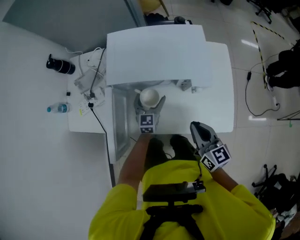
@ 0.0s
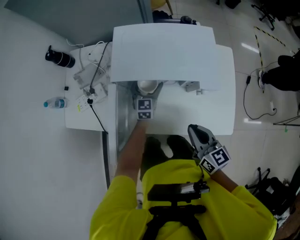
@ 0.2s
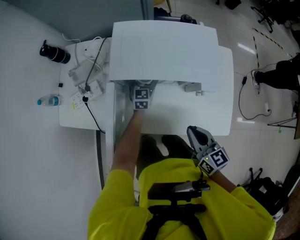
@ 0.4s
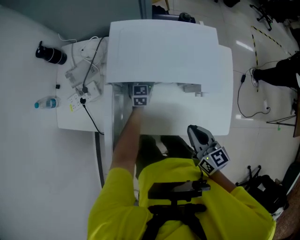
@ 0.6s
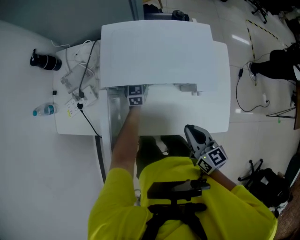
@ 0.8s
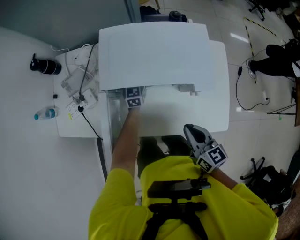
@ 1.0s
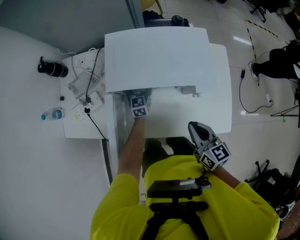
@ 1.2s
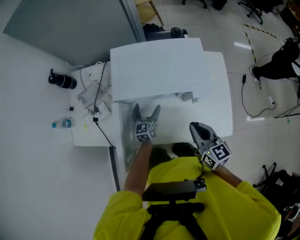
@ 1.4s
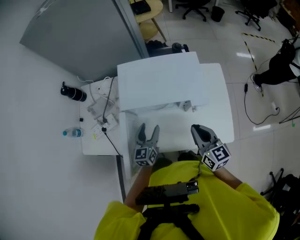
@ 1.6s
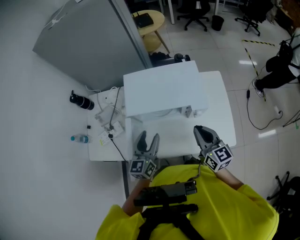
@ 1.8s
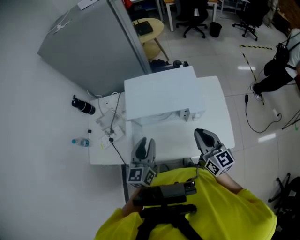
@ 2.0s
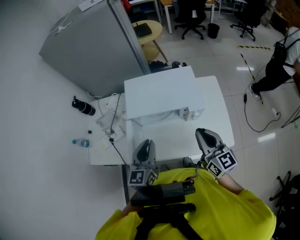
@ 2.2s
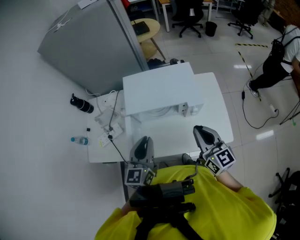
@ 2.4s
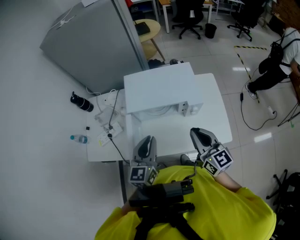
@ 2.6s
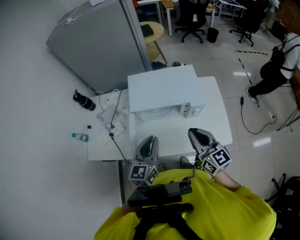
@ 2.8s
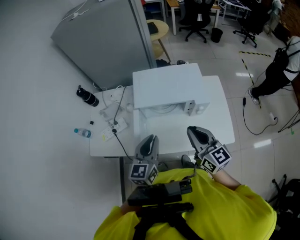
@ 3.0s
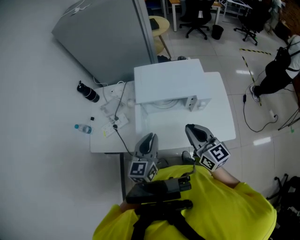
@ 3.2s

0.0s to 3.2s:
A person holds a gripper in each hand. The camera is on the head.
0.0s to 1.6s: The left gripper is displaced upward and to the left by roughly 10 cm, and reaches approximately 15 cm forward, then returns, while the right gripper goes roughly 5 cm upward.
1.6s to 3.2s: The right gripper shifts roughly 15 cm to the left, upward and backward; the left gripper travels upward and backward by about 20 cm, and closes its fingers.

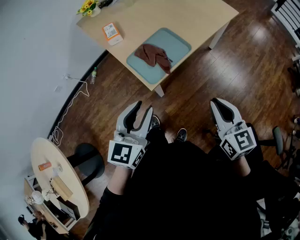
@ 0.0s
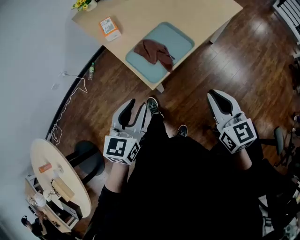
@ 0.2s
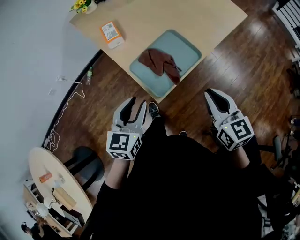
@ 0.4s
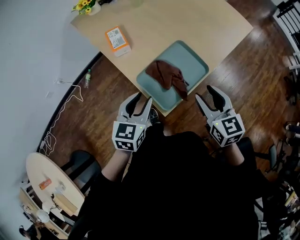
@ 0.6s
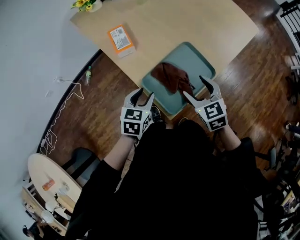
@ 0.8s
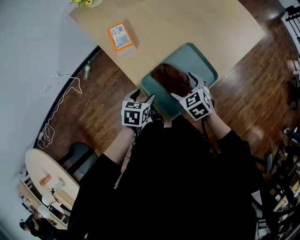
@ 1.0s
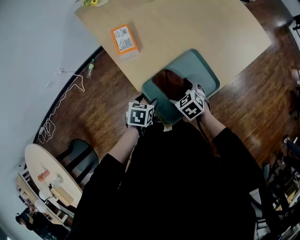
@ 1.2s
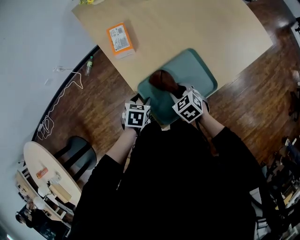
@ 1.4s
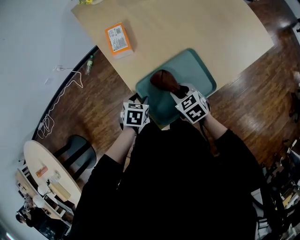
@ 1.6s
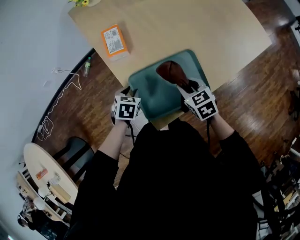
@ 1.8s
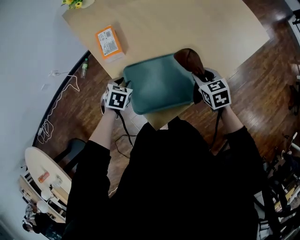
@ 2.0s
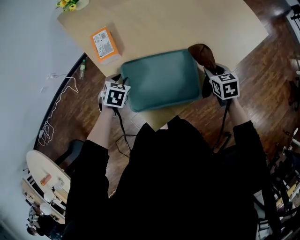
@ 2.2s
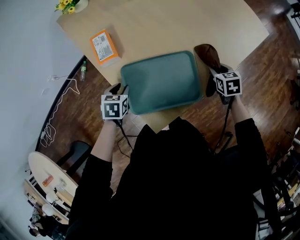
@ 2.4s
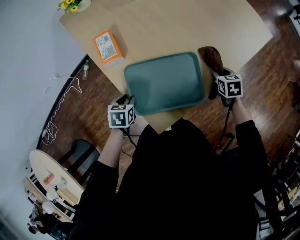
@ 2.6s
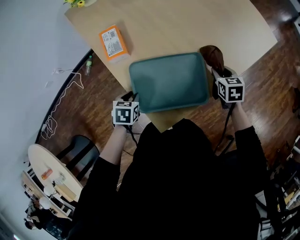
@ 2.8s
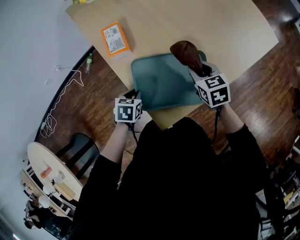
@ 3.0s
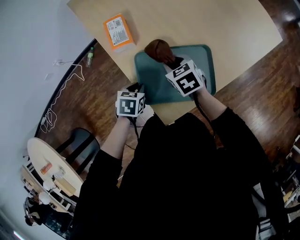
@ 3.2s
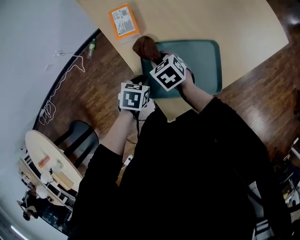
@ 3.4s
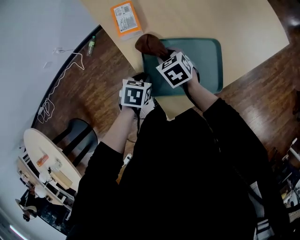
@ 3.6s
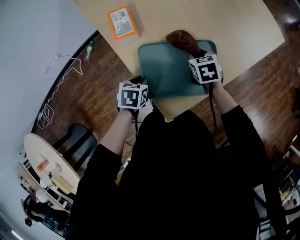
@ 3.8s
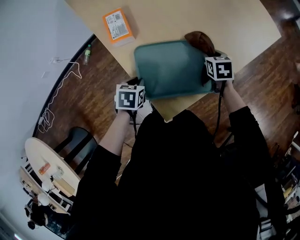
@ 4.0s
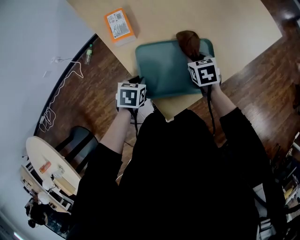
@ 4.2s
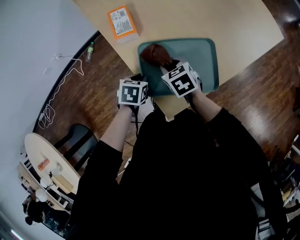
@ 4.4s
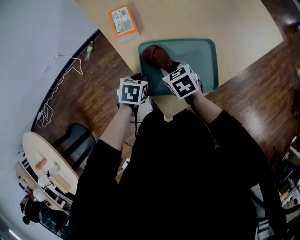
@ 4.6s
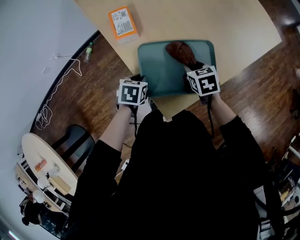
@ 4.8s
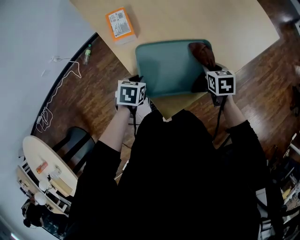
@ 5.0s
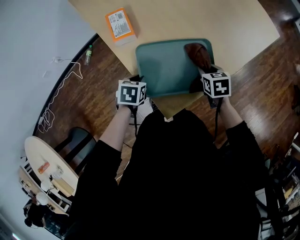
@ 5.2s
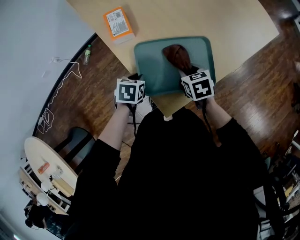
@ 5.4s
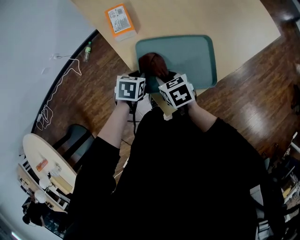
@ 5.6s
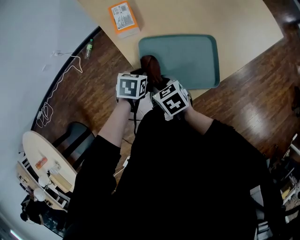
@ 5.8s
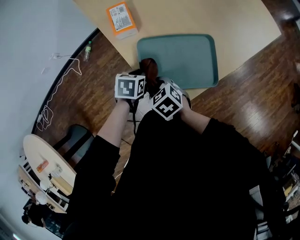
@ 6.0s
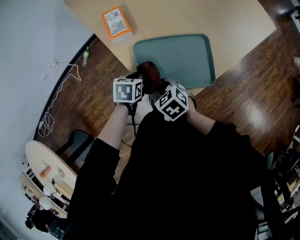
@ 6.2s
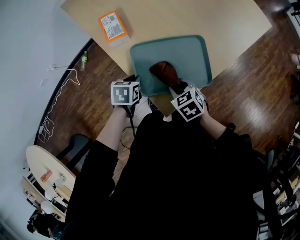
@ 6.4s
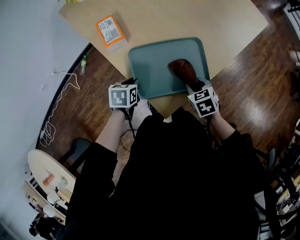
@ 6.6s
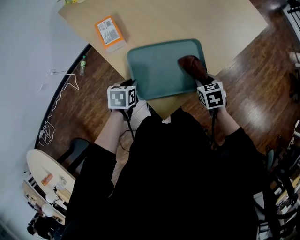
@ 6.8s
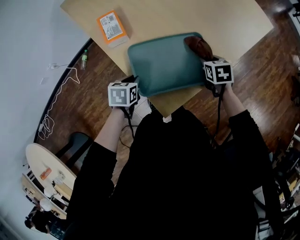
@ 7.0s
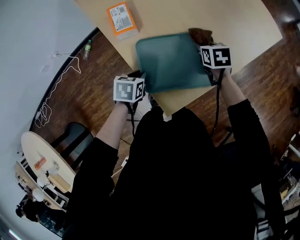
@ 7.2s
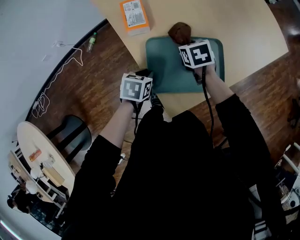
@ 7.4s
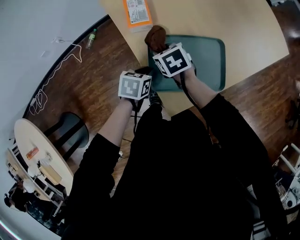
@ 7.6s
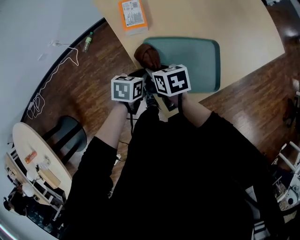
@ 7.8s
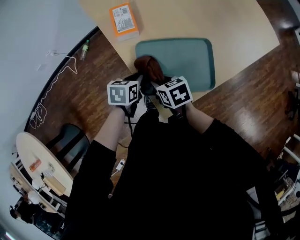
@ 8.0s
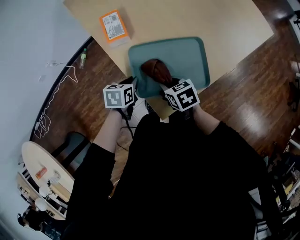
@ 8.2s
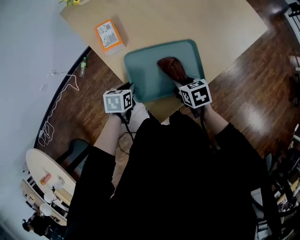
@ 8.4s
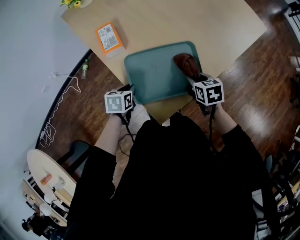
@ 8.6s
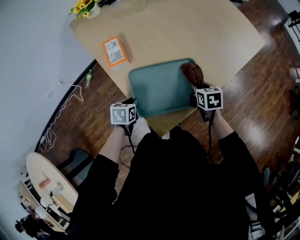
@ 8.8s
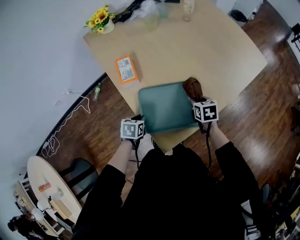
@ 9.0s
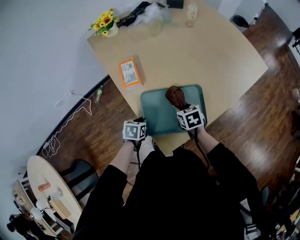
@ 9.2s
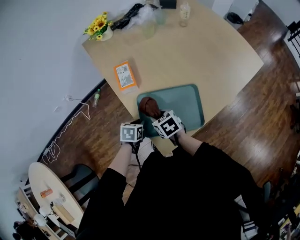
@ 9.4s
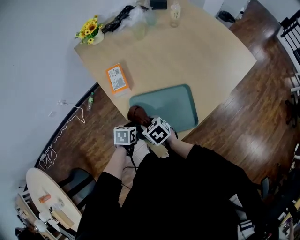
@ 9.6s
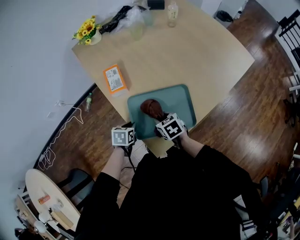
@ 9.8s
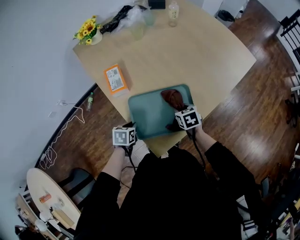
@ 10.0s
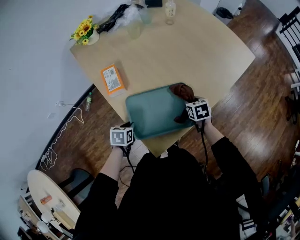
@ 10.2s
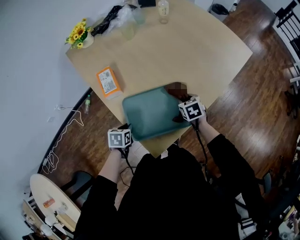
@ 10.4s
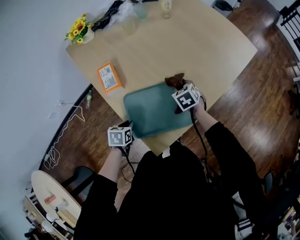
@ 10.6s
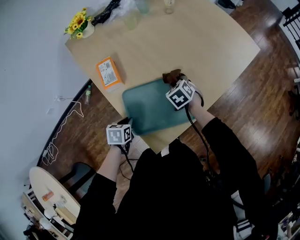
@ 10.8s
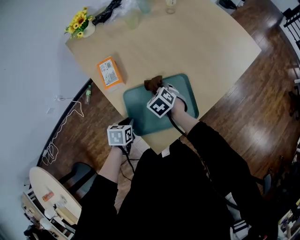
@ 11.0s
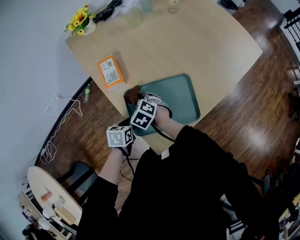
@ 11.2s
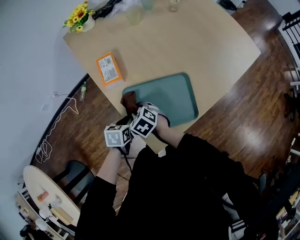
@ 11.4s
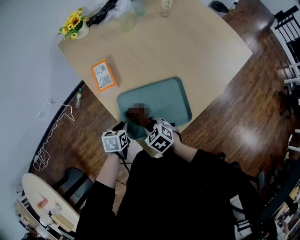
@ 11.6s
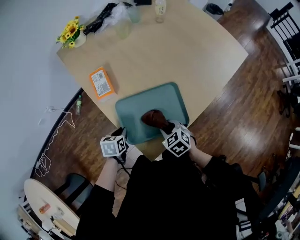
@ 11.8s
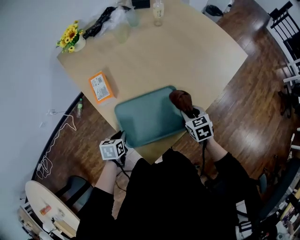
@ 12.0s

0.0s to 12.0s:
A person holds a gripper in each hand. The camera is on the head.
0.0s to 1.6s: The left gripper travels downward and forward by some 40 cm, and tilts its fingers approximately 50 degrees downward, while the right gripper heads forward, downward and to the left, covering some 50 cm, tilts its fingers about 30 degrees downward, and opens, then closes again.
1.6s to 3.0s: The right gripper moves forward, about 10 cm, and moves approximately 25 cm to the right and comes back. Meanwhile the left gripper moves roughly 10 cm forward and comes back, and closes up.
3.0s to 4.4s: The right gripper swings left and right, some 25 cm each way, with 2 reversals.
4.4s to 6.0s: The right gripper travels backward by approximately 10 cm, and travels to the right and back again, some 20 cm each way.
6.0s to 7.6s: The right gripper travels forward by about 15 cm, and goes to the right and returns, roughly 30 cm each way.
7.6s to 9.0s: The right gripper moves to the right, roughly 25 cm, and changes its angle by approximately 30 degrees.
9.0s to 10.4s: The right gripper reaches some 20 cm to the left, then returns.
10.4s to 12.0s: The right gripper reaches about 25 cm to the left, then returns.

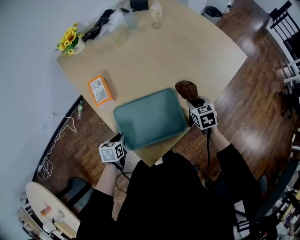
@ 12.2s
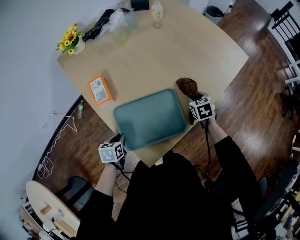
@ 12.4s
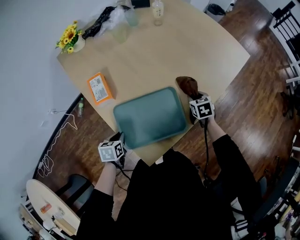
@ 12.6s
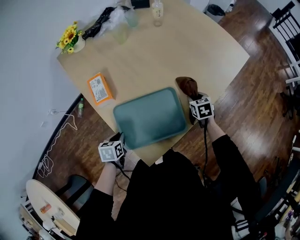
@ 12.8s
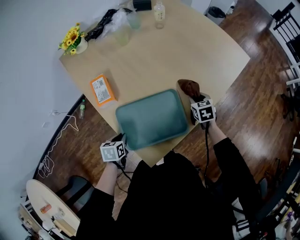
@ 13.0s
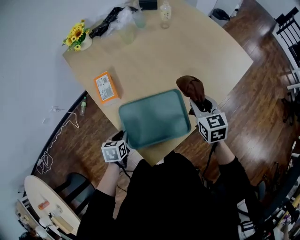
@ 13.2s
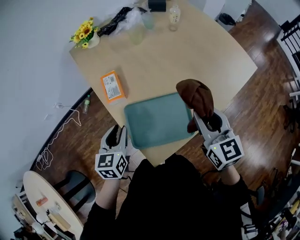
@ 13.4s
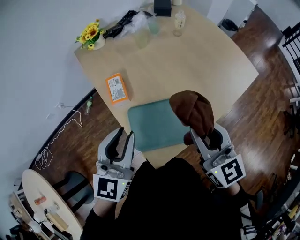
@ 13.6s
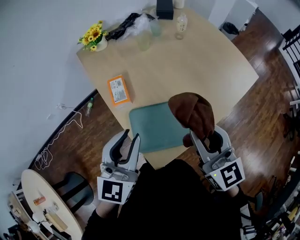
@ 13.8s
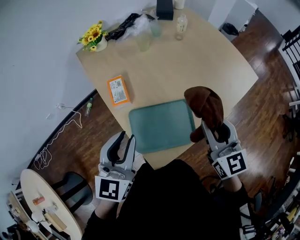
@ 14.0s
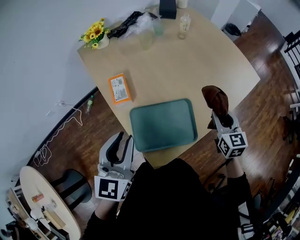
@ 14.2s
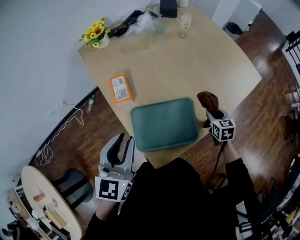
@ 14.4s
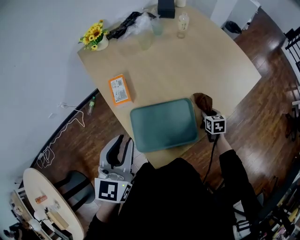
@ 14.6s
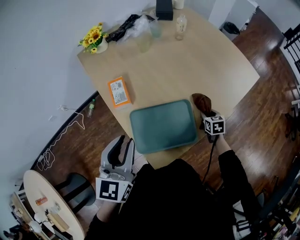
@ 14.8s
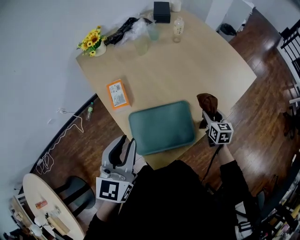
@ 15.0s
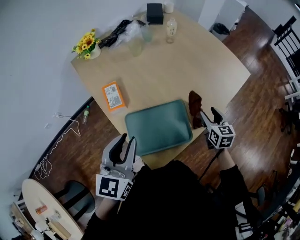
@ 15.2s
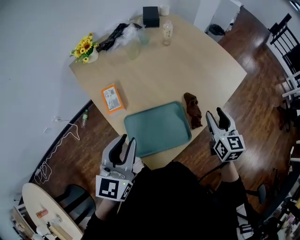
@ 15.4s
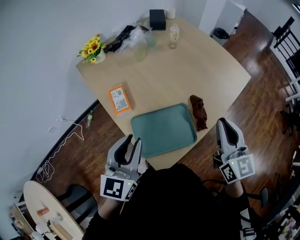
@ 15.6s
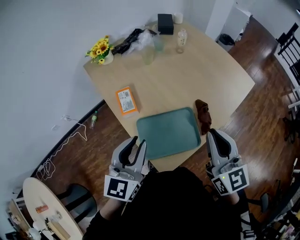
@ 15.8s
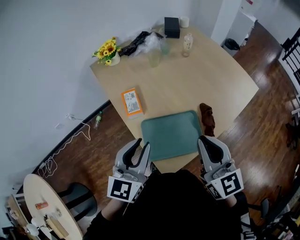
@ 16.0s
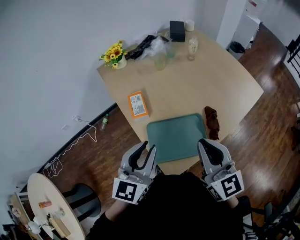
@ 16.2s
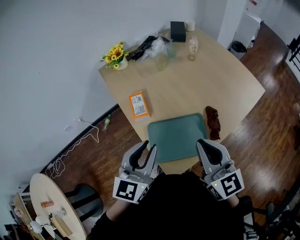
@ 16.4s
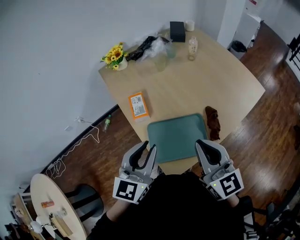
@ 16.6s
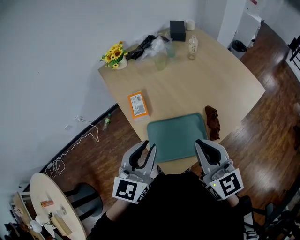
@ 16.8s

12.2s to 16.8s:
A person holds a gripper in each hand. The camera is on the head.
12.2s to 13.8s: The left gripper moves upward, roughly 35 cm, and angles its fingers upward, by approximately 50 degrees. Meanwhile the right gripper heads upward and to the left, covering approximately 35 cm, and tilts its fingers approximately 40 degrees upward.
13.8s to 15.2s: The right gripper is displaced downward and to the right by some 25 cm, turns by about 30 degrees, and opens its fingers.
15.2s to 16.8s: The right gripper goes approximately 30 cm upward, to the left and backward, turns by approximately 40 degrees, and closes its fingers.

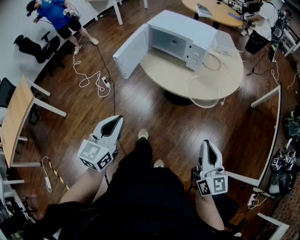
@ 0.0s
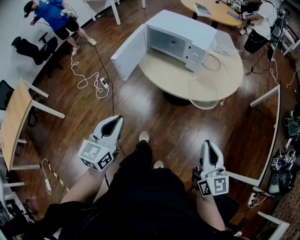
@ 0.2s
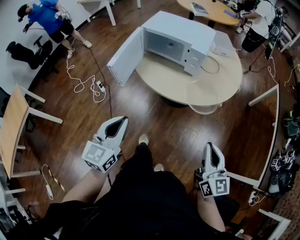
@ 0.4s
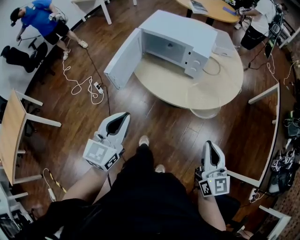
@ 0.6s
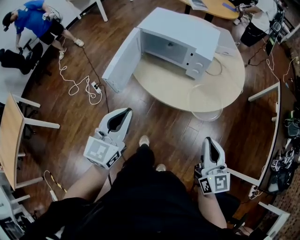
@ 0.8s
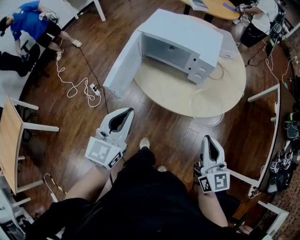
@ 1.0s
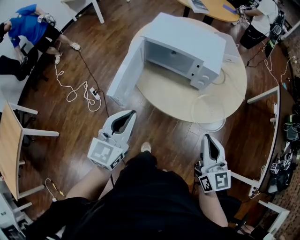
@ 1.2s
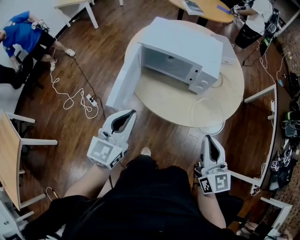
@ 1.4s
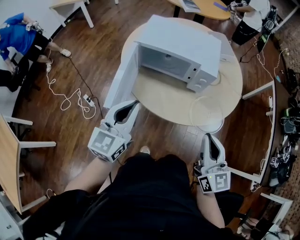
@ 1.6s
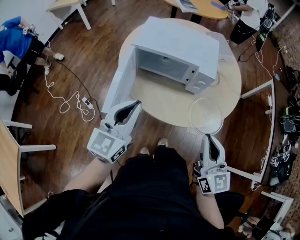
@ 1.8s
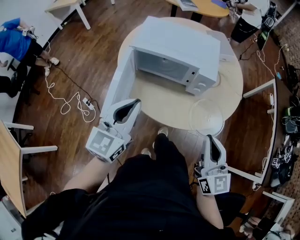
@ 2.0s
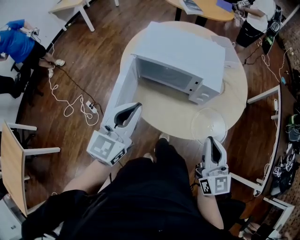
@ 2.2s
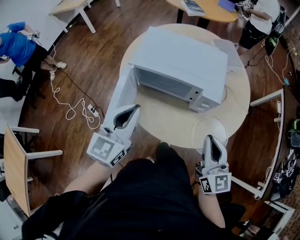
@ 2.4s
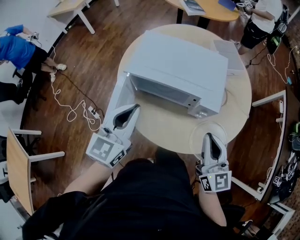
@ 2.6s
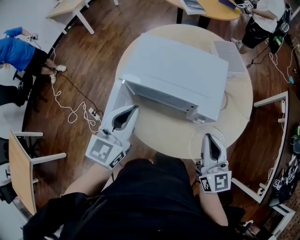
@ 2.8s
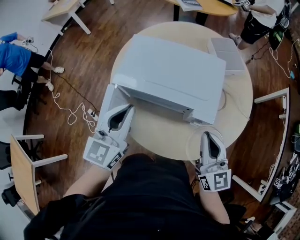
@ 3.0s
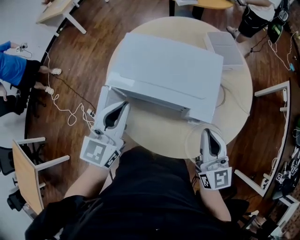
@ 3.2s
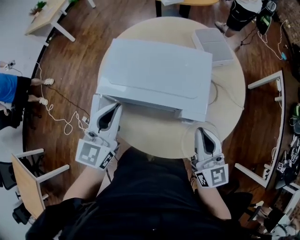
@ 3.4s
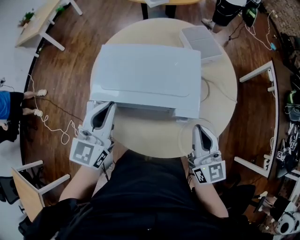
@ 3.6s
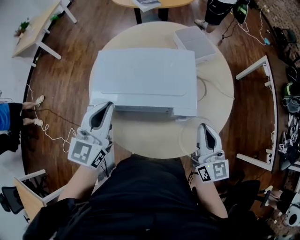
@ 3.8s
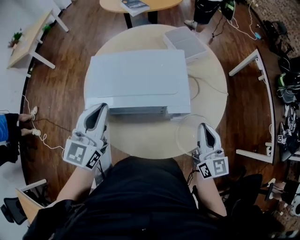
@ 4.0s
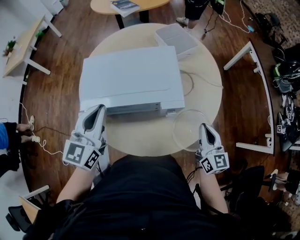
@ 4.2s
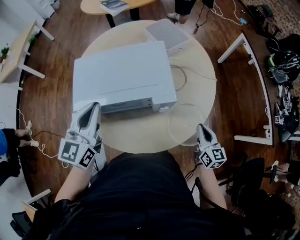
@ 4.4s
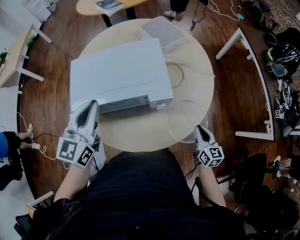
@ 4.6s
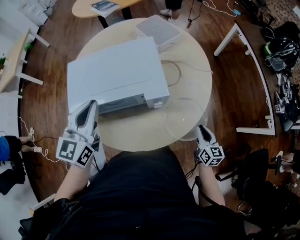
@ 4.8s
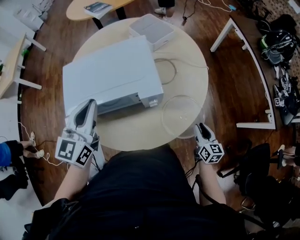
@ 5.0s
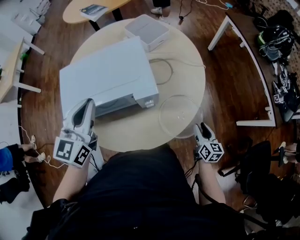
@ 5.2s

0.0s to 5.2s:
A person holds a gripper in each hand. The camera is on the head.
0.0s to 1.8s: The left gripper changes place by roughly 30 cm, and rotates approximately 20 degrees.
1.8s to 3.4s: The left gripper shifts by roughly 20 cm.
3.4s to 5.2s: The left gripper ends up some 5 cm from where it was.
